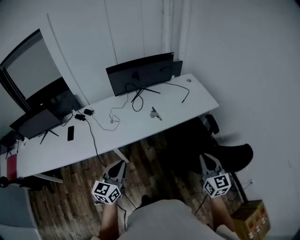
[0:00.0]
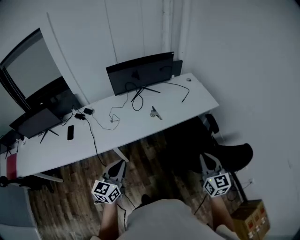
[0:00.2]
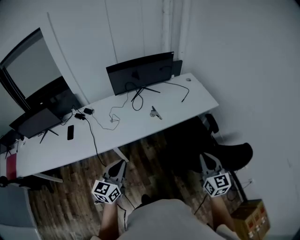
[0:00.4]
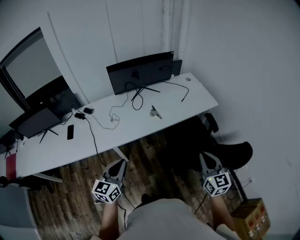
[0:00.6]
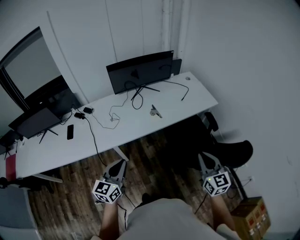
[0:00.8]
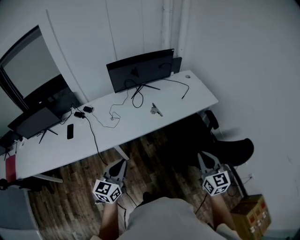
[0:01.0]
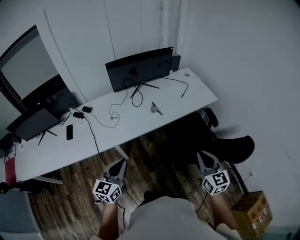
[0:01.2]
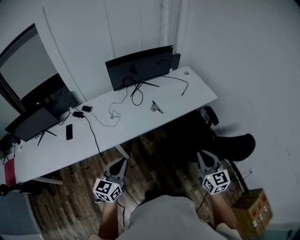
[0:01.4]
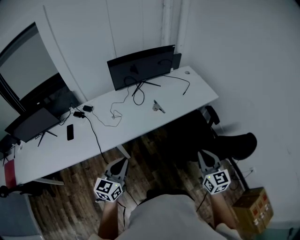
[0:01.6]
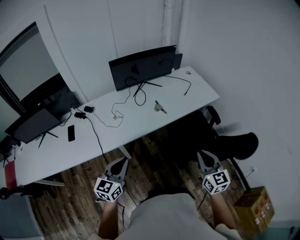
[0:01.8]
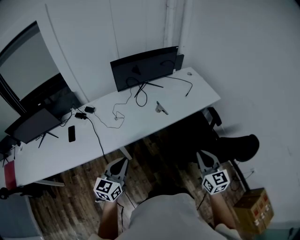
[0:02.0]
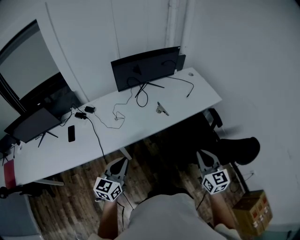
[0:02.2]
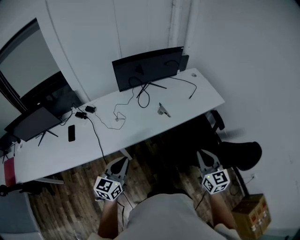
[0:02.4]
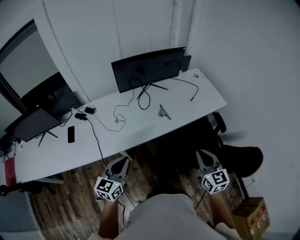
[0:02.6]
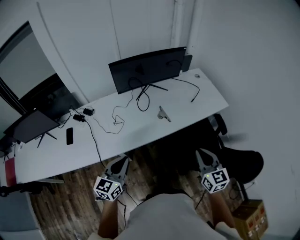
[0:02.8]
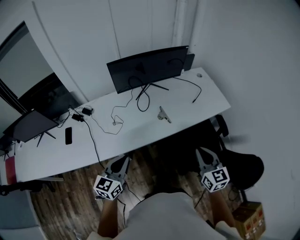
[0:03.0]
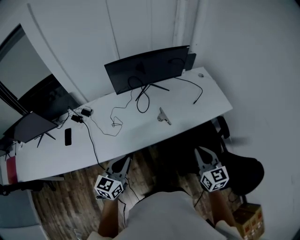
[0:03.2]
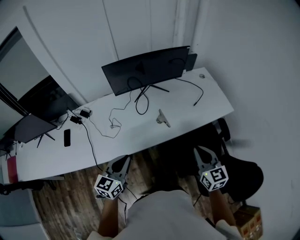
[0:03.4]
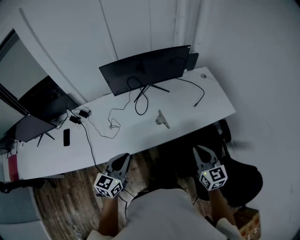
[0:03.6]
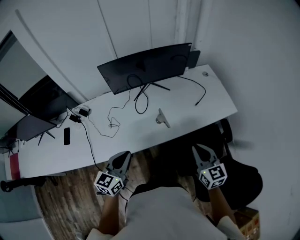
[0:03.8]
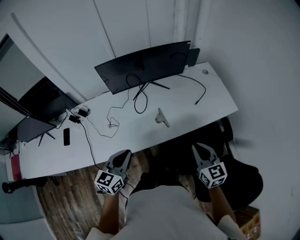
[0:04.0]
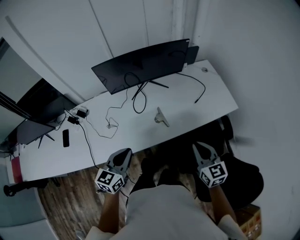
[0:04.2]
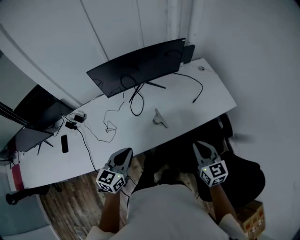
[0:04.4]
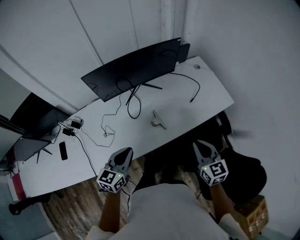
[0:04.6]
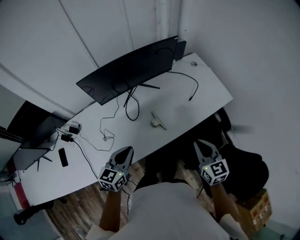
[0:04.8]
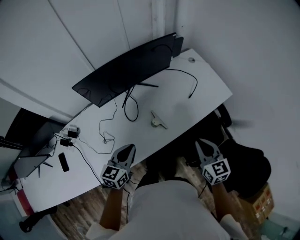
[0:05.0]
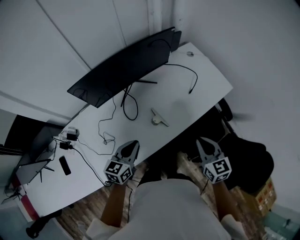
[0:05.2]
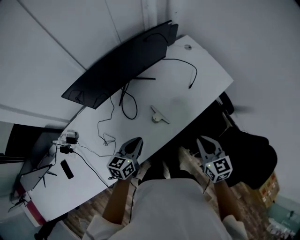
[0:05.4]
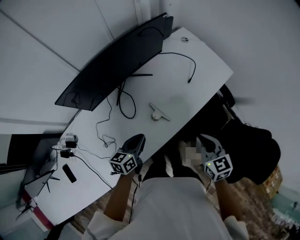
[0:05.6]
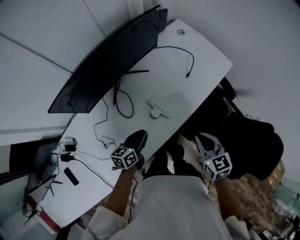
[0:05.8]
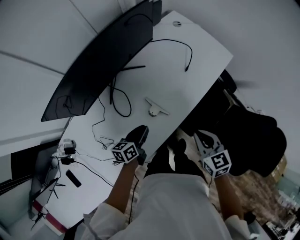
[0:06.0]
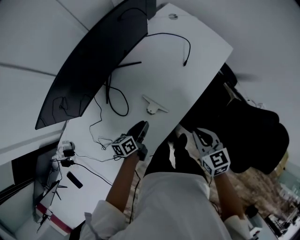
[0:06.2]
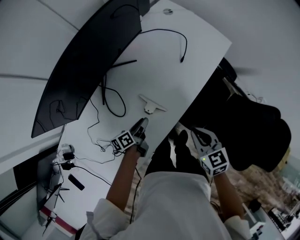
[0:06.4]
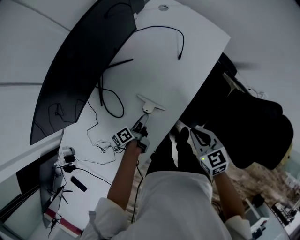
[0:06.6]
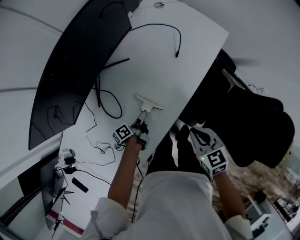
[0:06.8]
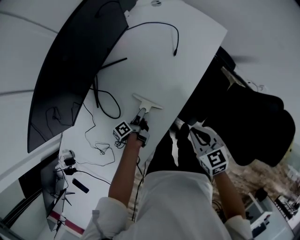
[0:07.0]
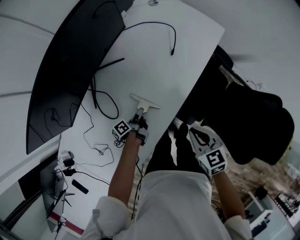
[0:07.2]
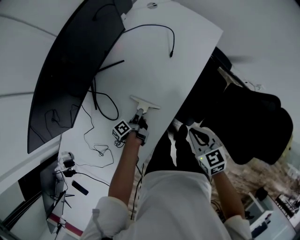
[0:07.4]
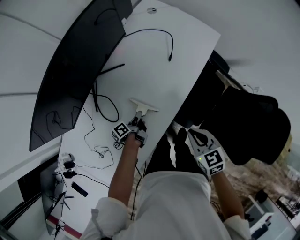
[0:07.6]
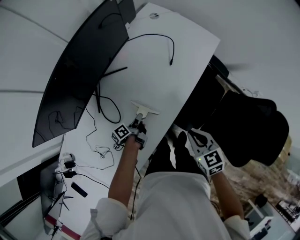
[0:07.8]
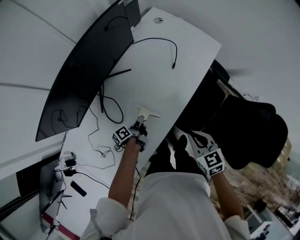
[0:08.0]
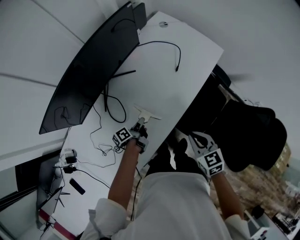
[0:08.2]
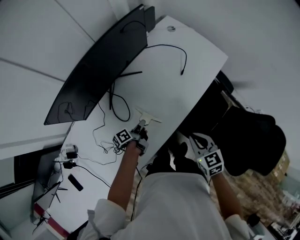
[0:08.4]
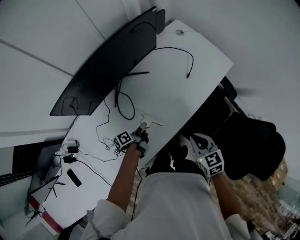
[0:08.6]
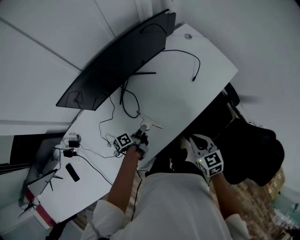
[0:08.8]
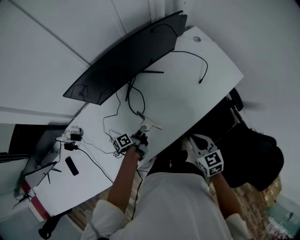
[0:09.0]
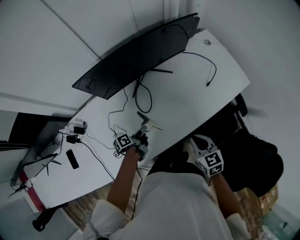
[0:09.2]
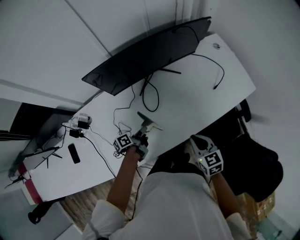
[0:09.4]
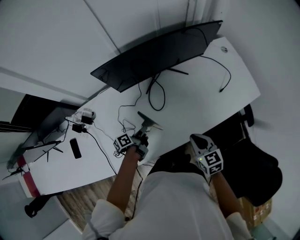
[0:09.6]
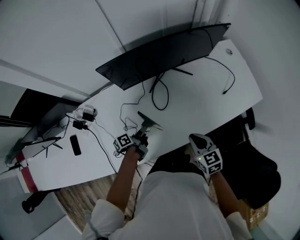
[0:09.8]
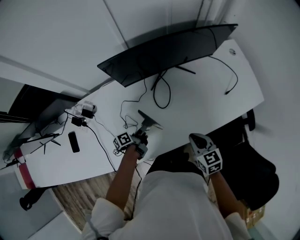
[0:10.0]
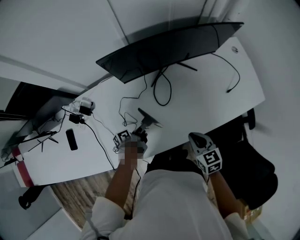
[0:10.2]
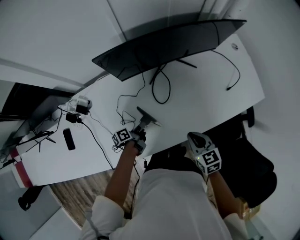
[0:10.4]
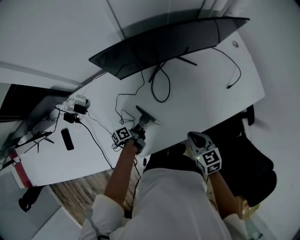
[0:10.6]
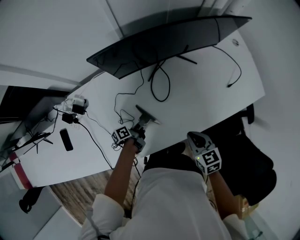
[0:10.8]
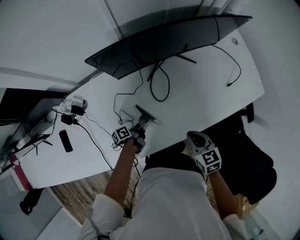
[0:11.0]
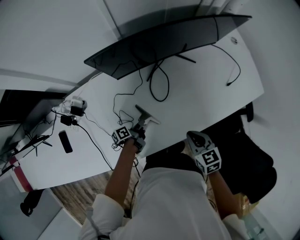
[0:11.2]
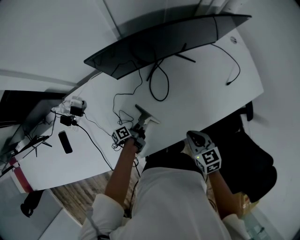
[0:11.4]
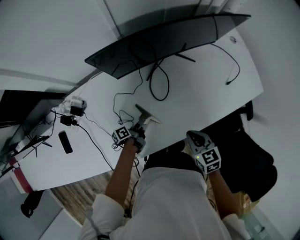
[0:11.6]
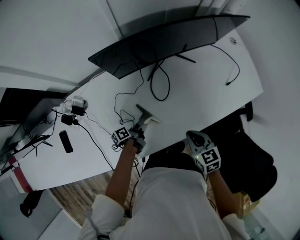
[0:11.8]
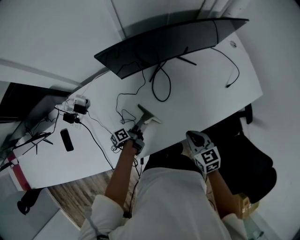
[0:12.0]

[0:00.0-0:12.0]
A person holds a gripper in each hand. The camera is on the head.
0:00.0 to 0:01.6: Both grippers travel together to the left, roughly 5 cm.
0:01.6 to 0:03.0: The two grippers go some 15 cm forward.
0:03.0 to 0:04.4: The right gripper is displaced forward by roughly 15 cm; the left gripper travels forward and to the right by about 15 cm.
0:04.4 to 0:06.0: The right gripper heads downward, forward and to the left, covering about 15 cm, and swivels about 30 degrees; the left gripper goes some 30 cm downward and forward, and turns by approximately 40 degrees.
0:06.0 to 0:07.6: The right gripper shifts approximately 5 cm downward. The left gripper goes approximately 15 cm downward and forward, rotates around the line of its fingers by approximately 40 degrees, counterclockwise from behind, and opens, then closes once more.
0:07.6 to 0:09.0: The right gripper shifts approximately 5 cm to the left, while the left gripper travels to the left, upward and backward by roughly 15 cm.
0:09.0 to 0:10.4: The right gripper heads to the left, covering approximately 10 cm; the left gripper heads to the left and downward, covering approximately 15 cm.
0:10.4 to 0:12.0: The left gripper opens.

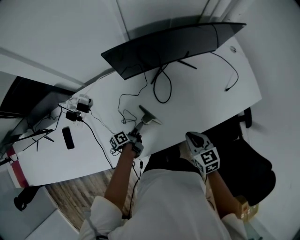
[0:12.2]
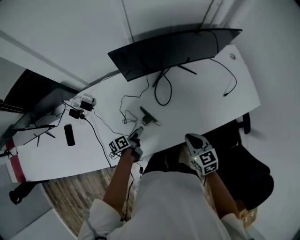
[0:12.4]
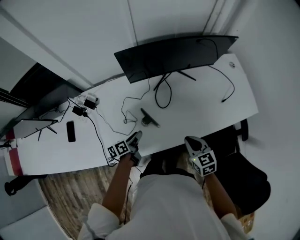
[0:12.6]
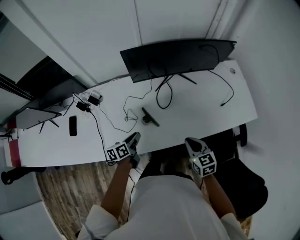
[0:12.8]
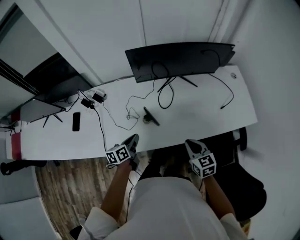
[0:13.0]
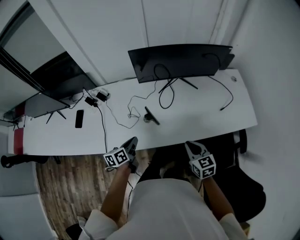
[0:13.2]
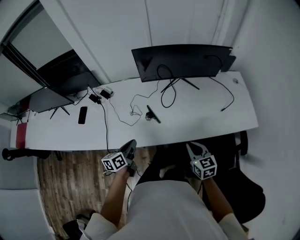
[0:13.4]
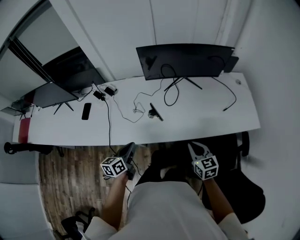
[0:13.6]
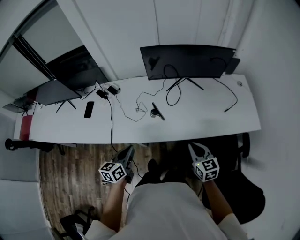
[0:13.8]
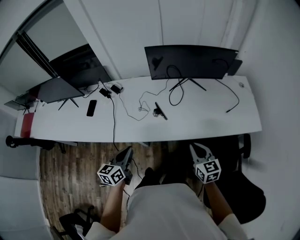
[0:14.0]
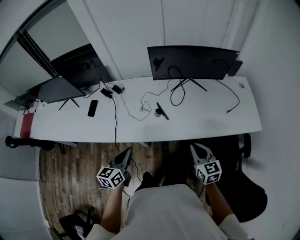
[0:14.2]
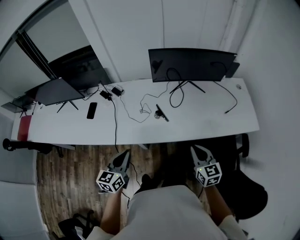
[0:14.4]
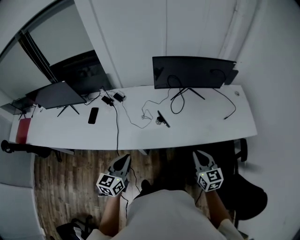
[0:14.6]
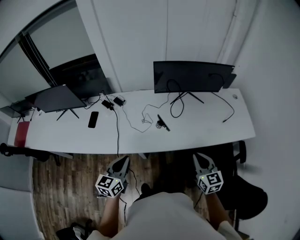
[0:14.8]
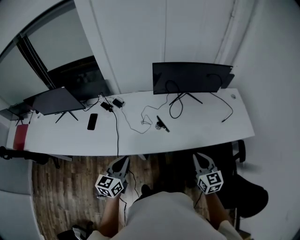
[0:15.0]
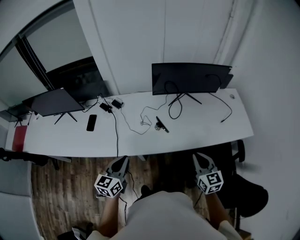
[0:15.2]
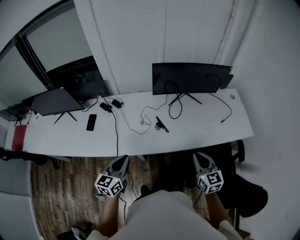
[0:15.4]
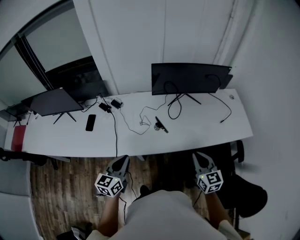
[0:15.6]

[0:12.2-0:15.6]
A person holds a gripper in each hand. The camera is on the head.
0:12.2 to 0:13.8: The left gripper goes some 40 cm backward and upward, twists approximately 50 degrees clockwise, seen from behind, and closes its fingers. Meanwhile the right gripper goes about 20 cm backward, upward and to the right.
0:13.8 to 0:15.6: The left gripper moves to the left and upward, about 10 cm, while the right gripper is displaced upward and to the left by about 10 cm.

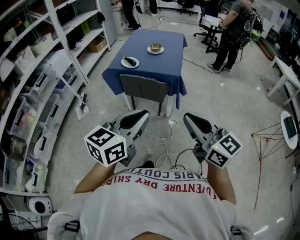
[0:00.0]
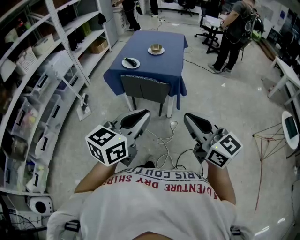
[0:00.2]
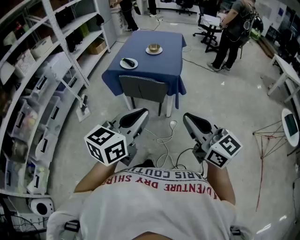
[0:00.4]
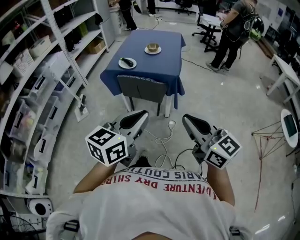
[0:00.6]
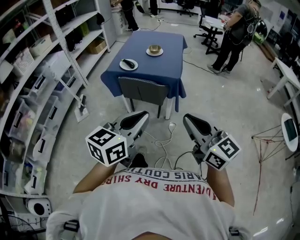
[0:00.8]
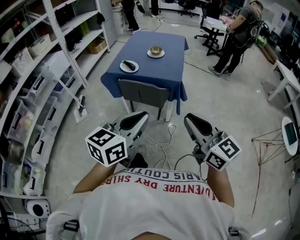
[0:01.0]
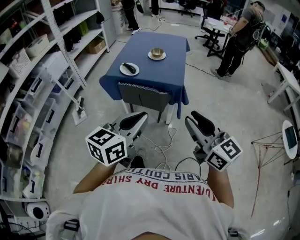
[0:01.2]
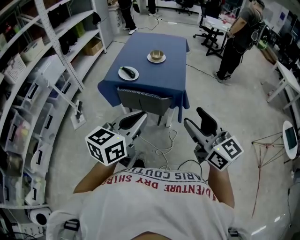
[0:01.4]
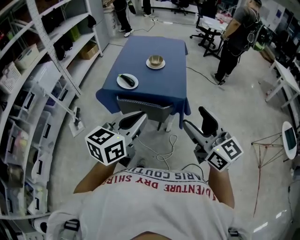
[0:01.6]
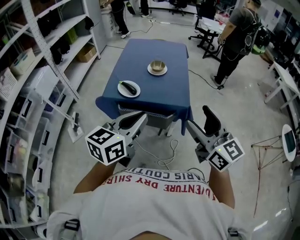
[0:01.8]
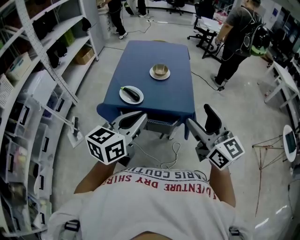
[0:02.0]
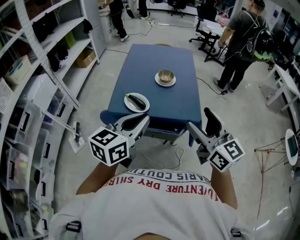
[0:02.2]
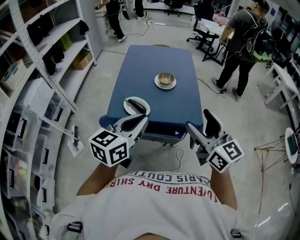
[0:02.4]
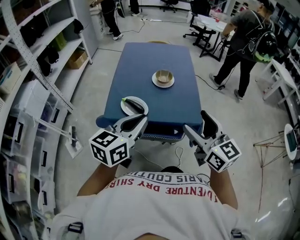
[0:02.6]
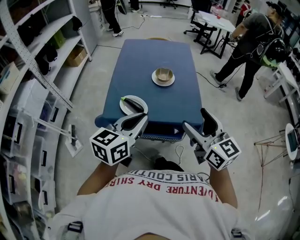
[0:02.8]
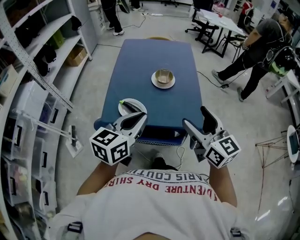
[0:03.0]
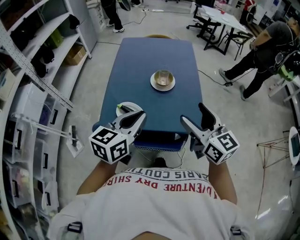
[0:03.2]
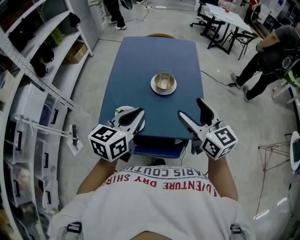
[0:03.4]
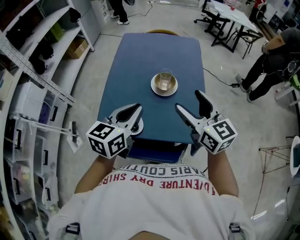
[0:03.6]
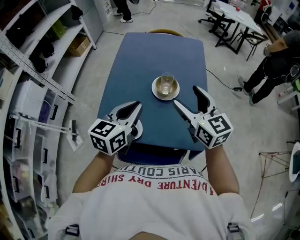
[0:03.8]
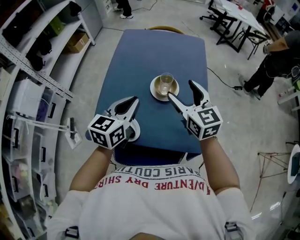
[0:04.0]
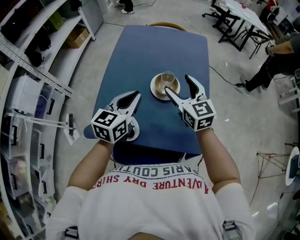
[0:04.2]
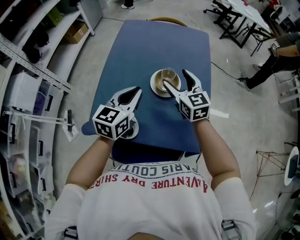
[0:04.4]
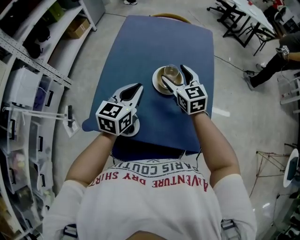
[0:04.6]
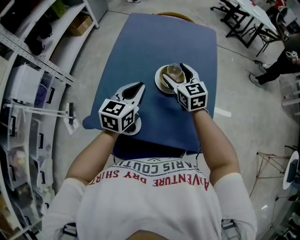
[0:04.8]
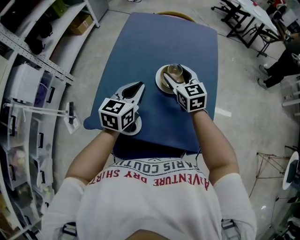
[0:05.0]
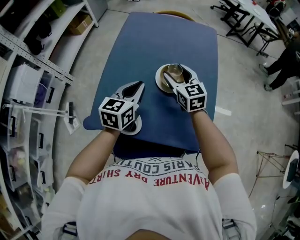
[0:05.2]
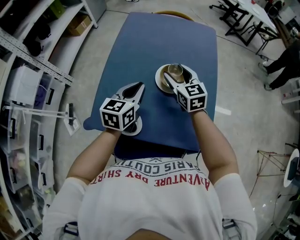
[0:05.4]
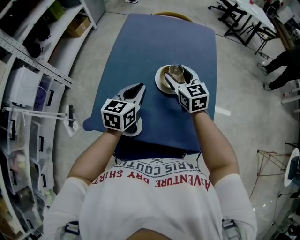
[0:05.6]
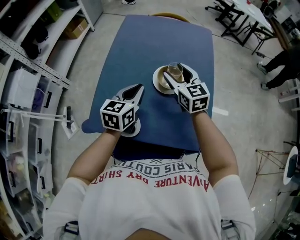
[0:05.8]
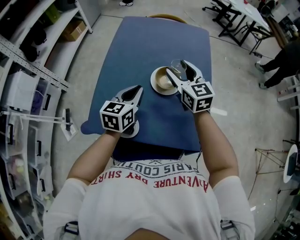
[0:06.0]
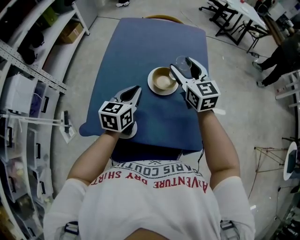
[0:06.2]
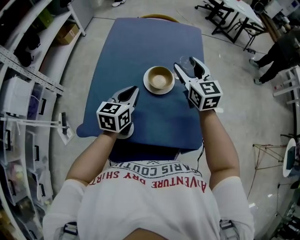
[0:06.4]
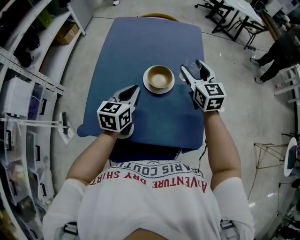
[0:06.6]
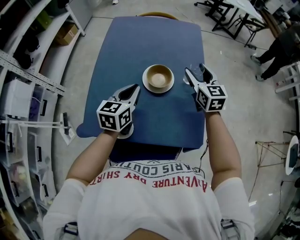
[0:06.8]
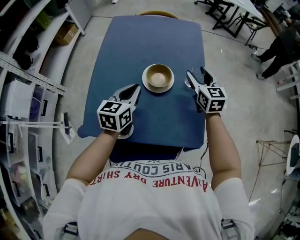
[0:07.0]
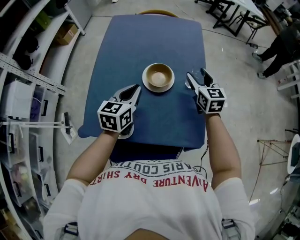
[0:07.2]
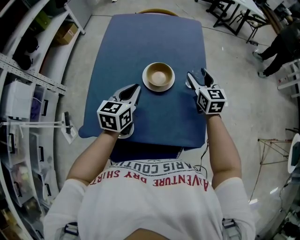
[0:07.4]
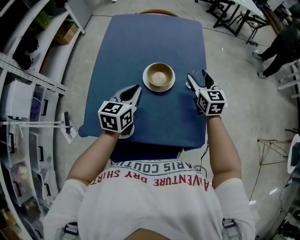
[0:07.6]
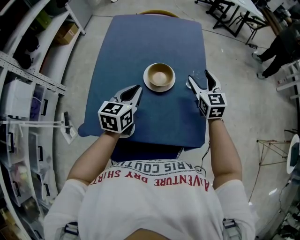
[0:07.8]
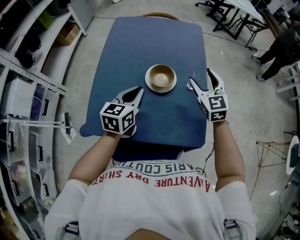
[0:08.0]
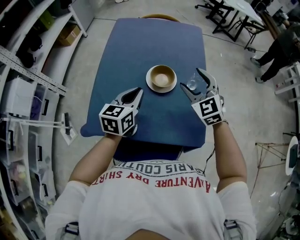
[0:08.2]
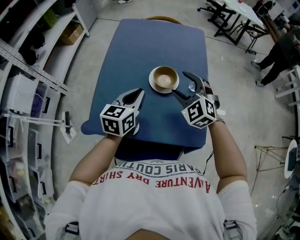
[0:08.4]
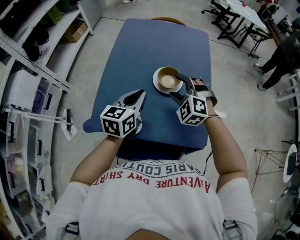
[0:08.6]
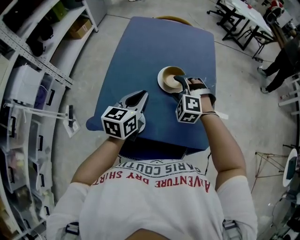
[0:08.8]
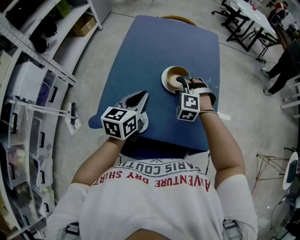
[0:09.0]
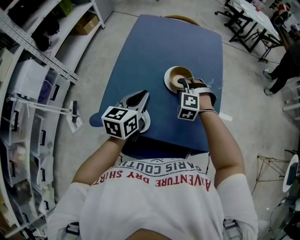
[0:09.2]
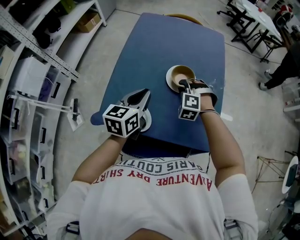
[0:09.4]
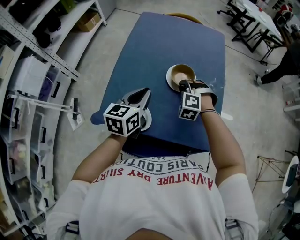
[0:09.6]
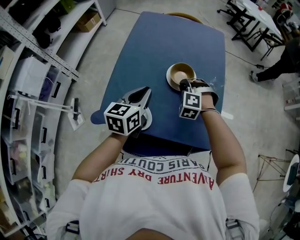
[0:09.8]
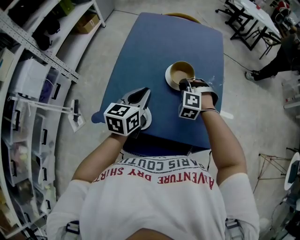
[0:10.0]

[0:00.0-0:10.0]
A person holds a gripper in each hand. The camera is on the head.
0:00.0 to 0:01.4: Both grippers travel together forward, roughly 15 cm. The right gripper opens up.
0:01.4 to 0:02.8: Both grippers move forward and to the left, some 30 cm.
0:02.8 to 0:04.2: Both grippers move forward, some 30 cm.
0:04.2 to 0:05.8: The left gripper is displaced downward by roughly 5 cm. Meanwhile the right gripper goes some 5 cm forward.
0:05.8 to 0:07.2: The right gripper travels to the right by some 15 cm.
0:07.2 to 0:08.6: The right gripper travels to the left and backward by roughly 15 cm, and rotates around the line of its fingers by about 60 degrees, counterclockwise from behind, while the left gripper shifts by about 5 cm.
0:08.6 to 0:10.0: The right gripper is displaced downward by approximately 10 cm, and closes its fingers.
